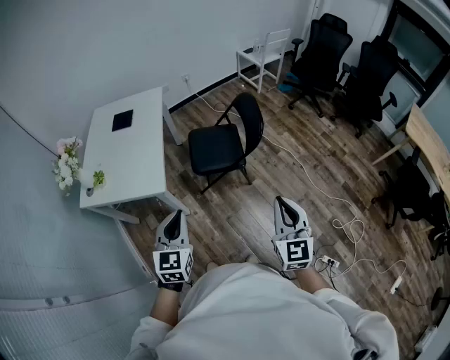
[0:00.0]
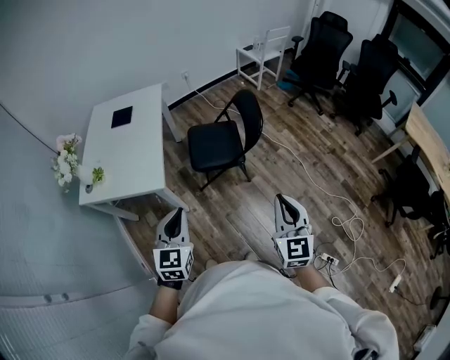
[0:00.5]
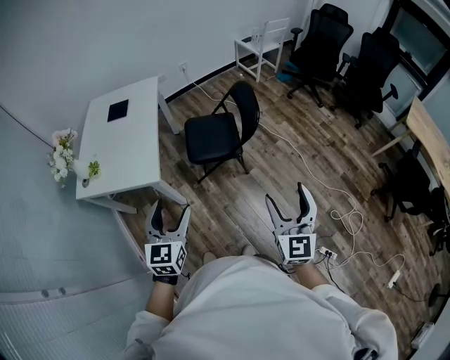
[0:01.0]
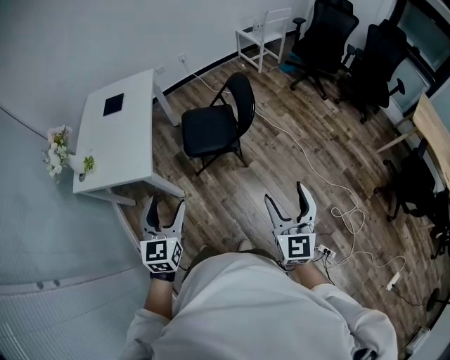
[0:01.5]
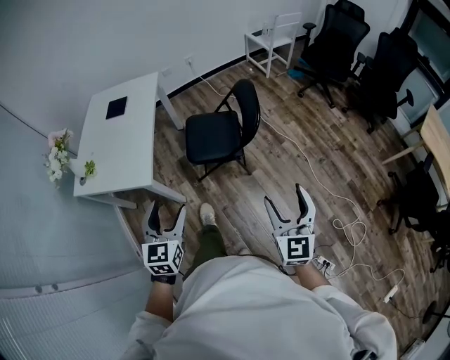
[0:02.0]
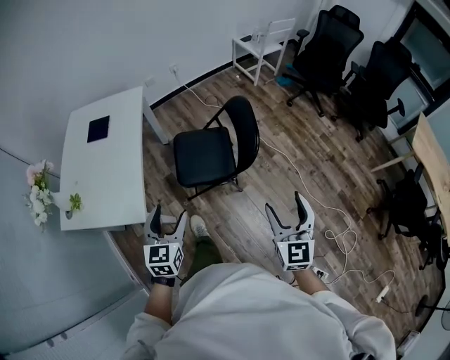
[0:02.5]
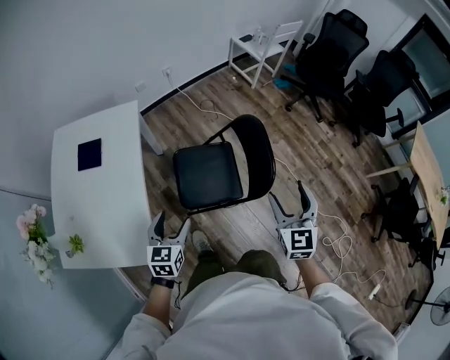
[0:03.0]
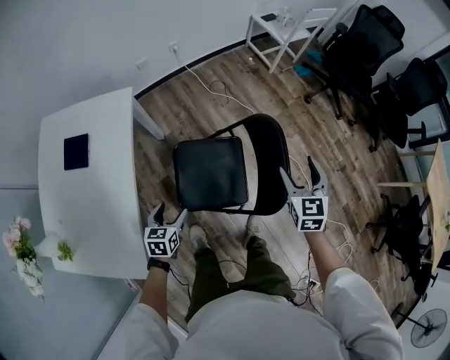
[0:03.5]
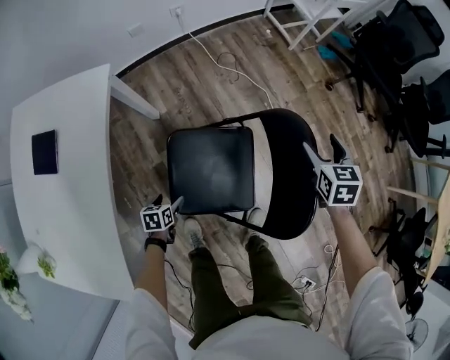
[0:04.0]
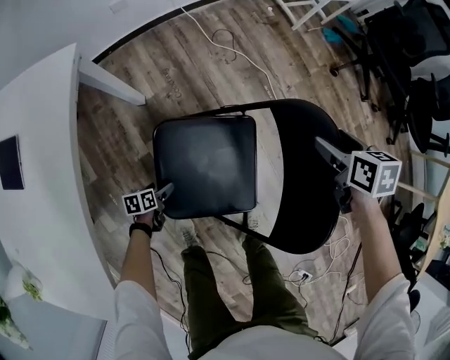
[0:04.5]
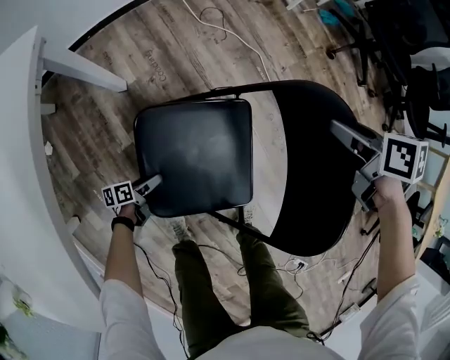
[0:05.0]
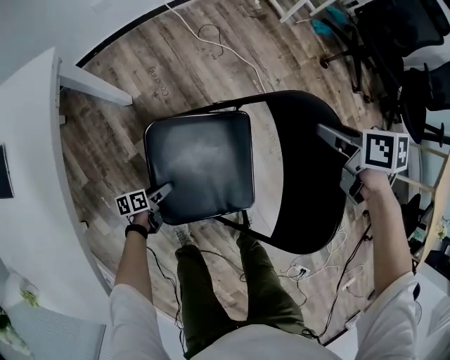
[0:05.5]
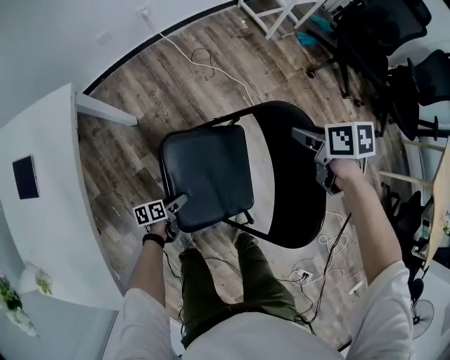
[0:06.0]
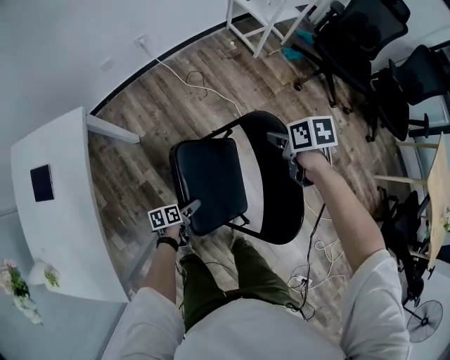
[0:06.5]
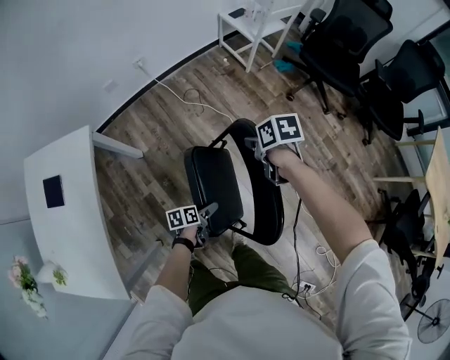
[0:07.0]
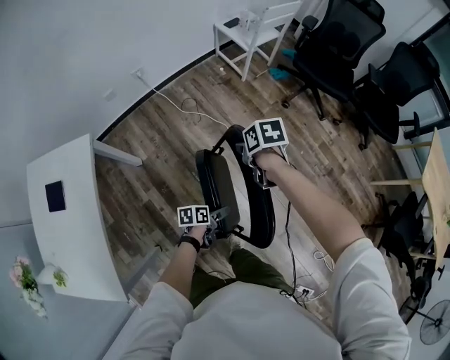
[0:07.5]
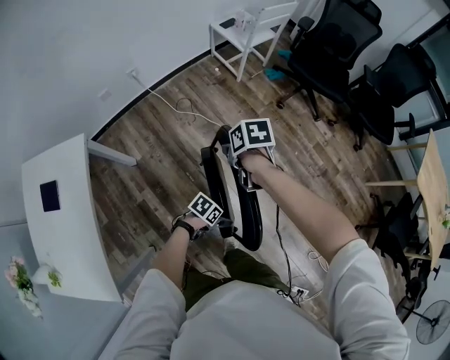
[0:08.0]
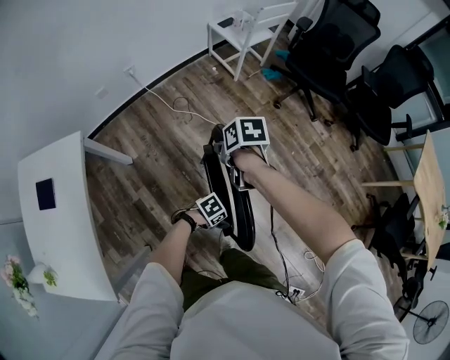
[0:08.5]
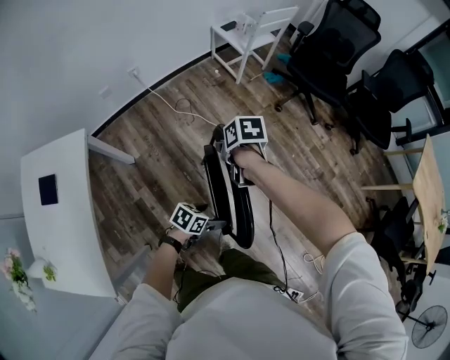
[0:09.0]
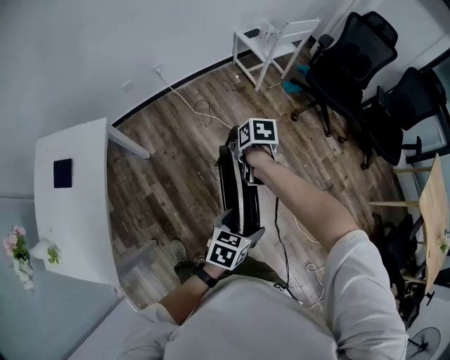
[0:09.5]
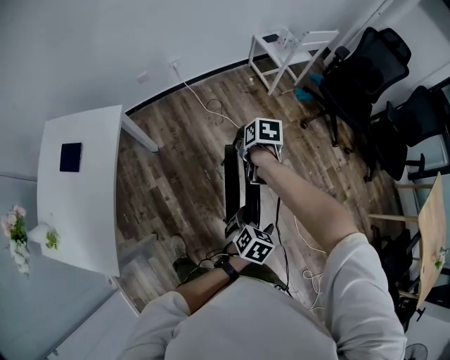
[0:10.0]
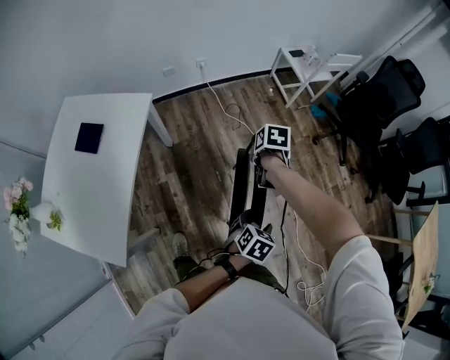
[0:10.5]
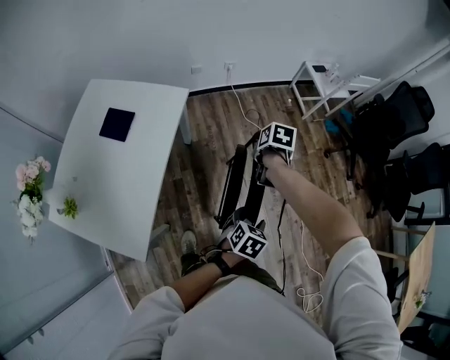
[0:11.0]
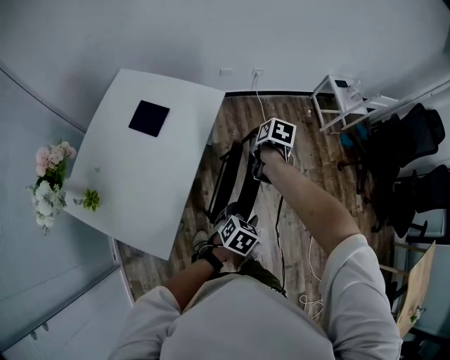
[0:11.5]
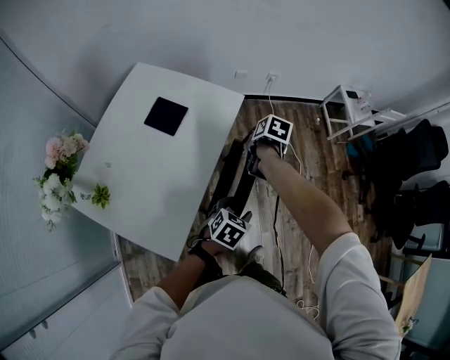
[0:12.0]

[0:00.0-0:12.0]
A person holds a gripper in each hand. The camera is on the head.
0:00.0 to 0:02.0: Both grippers travel together to the right and forward, some 10 cm. The left gripper opens up, while the right gripper opens its fingers.
0:02.0 to 0:04.0: The pair of grippers is taken forward, about 60 cm. The left gripper shifts some 60 cm downward, and angles its fingers downward, by approximately 40 degrees, while the right gripper moves downward, roughly 30 cm, and tilts its fingers roughly 40 degrees downward.
0:04.0 to 0:06.0: The right gripper travels downward and back again, some 10 cm each way, changes its angle by about 40 degrees, and closes, while the left gripper is displaced to the right by some 10 cm, goes downward and returns, roughly 20 cm each way, and rotates some 30 degrees.
0:06.0 to 0:08.0: The left gripper shifts by some 40 cm, and rotates roughly 60 degrees. The right gripper moves upward, approximately 10 cm.
0:08.0 to 0:10.0: The left gripper shifts about 20 cm upward, and rotates approximately 40 degrees, while the right gripper shifts by some 5 cm.
0:10.0 to 0:12.0: Both grippers are carried to the left, about 50 cm. The left gripper closes its fingers.

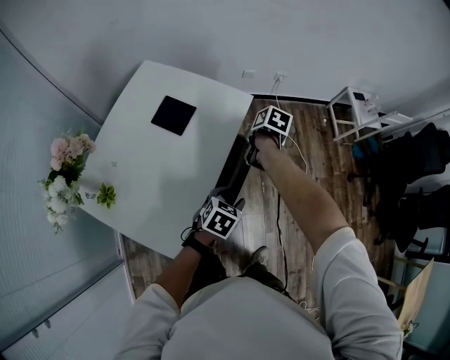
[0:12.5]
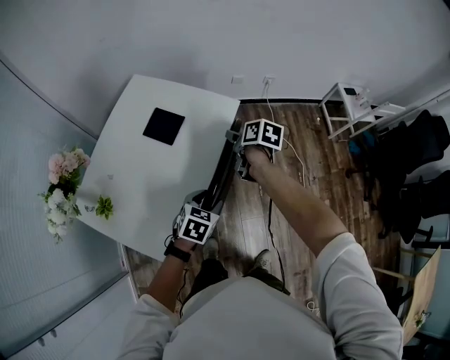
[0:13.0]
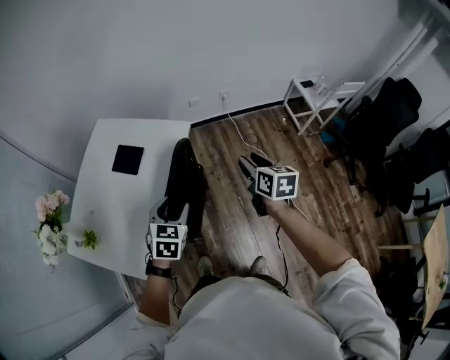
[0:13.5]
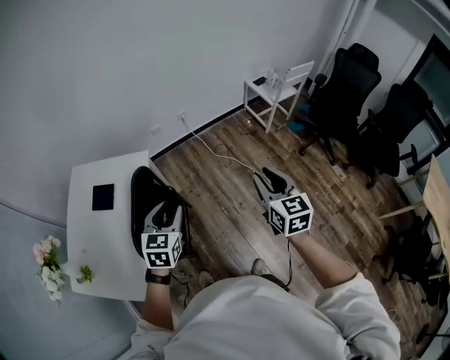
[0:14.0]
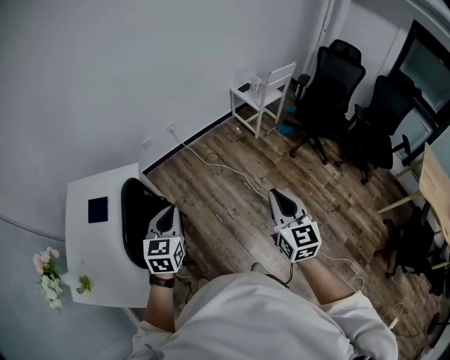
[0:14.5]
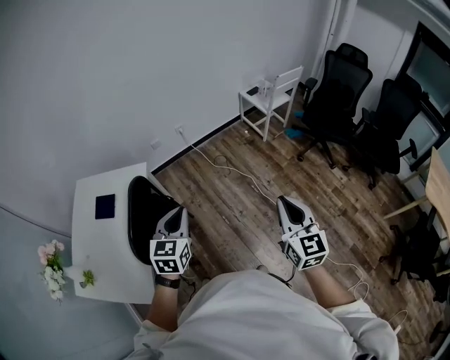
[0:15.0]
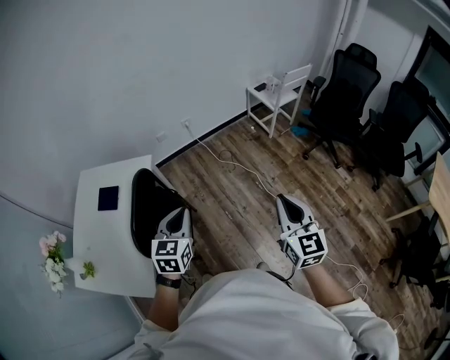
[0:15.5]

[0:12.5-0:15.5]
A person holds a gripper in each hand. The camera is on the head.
0:12.5 to 0:14.0: The left gripper moves upward and to the right, about 25 cm, and turns by some 30 degrees, while the right gripper moves to the right, upward and backward, about 50 cm, and tilts its fingers approximately 40 degrees upward.
0:14.0 to 0:15.5: The right gripper moves backward and to the right, approximately 15 cm, while the left gripper goes roughly 10 cm to the right, and closes its fingers.

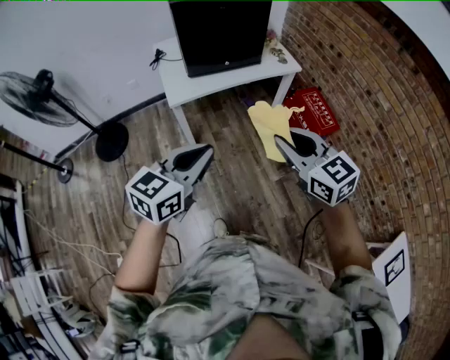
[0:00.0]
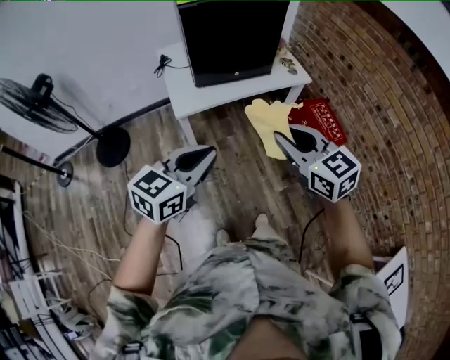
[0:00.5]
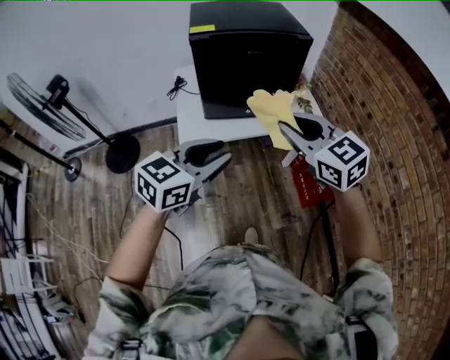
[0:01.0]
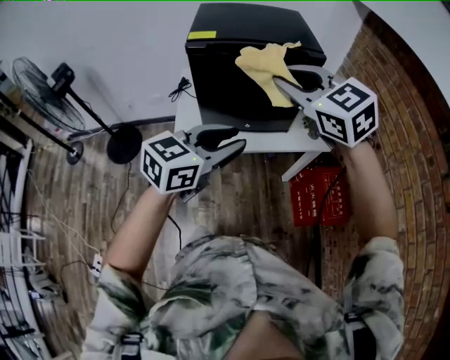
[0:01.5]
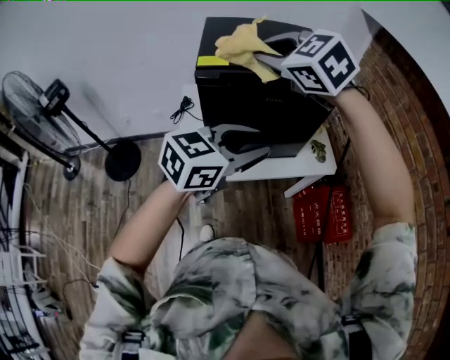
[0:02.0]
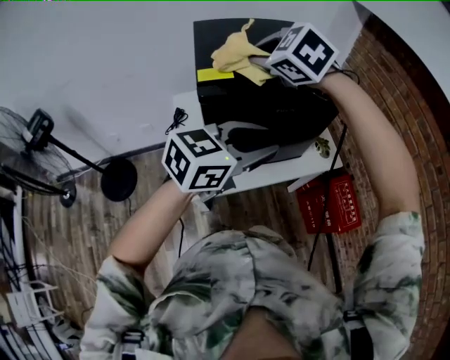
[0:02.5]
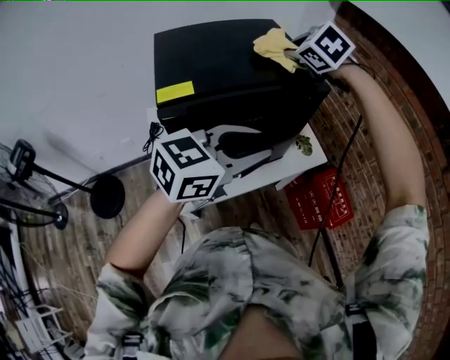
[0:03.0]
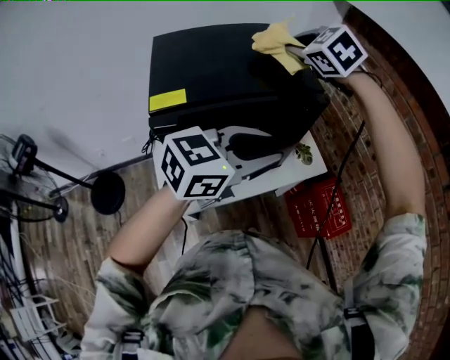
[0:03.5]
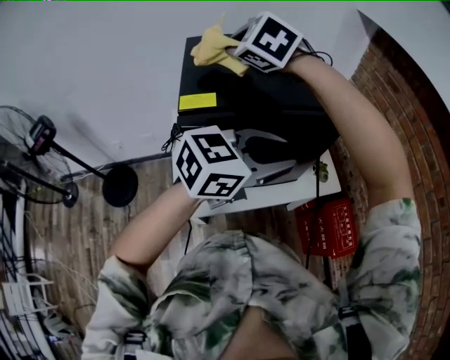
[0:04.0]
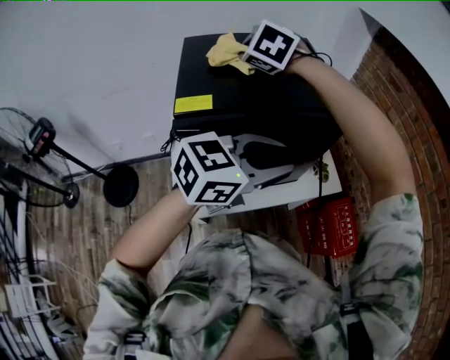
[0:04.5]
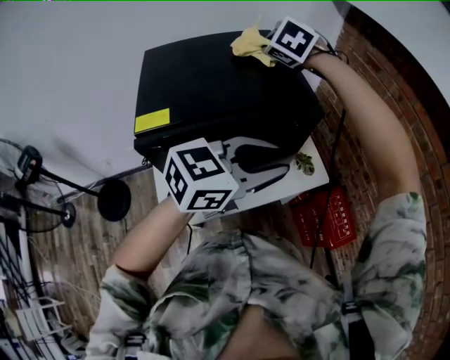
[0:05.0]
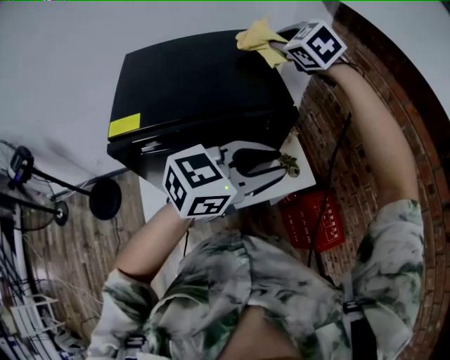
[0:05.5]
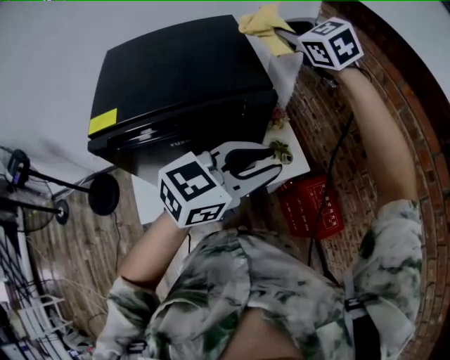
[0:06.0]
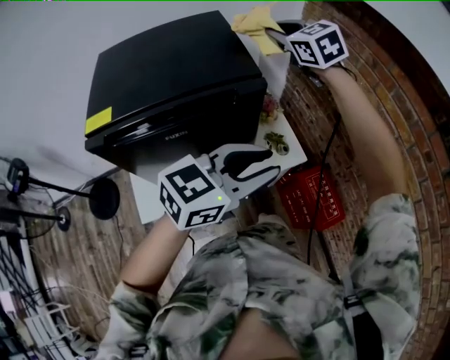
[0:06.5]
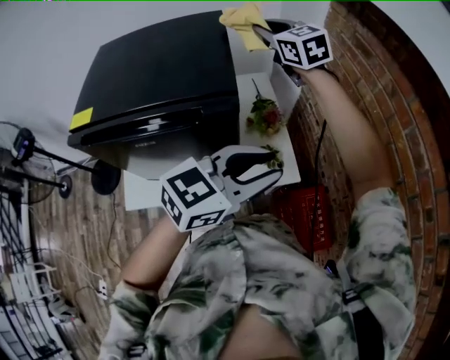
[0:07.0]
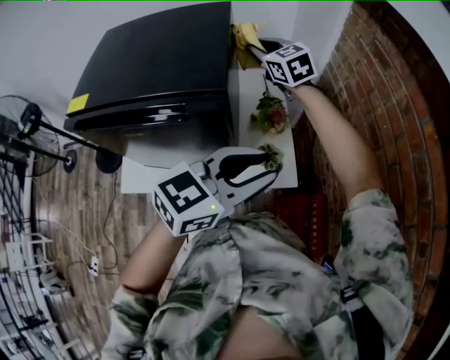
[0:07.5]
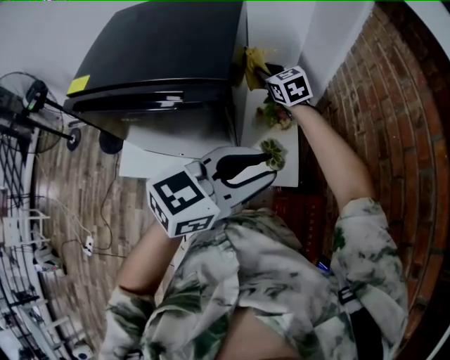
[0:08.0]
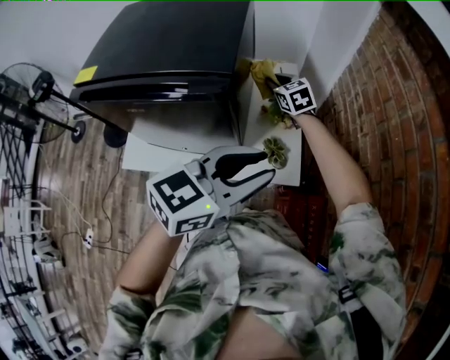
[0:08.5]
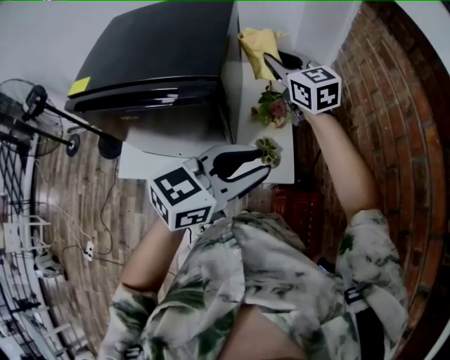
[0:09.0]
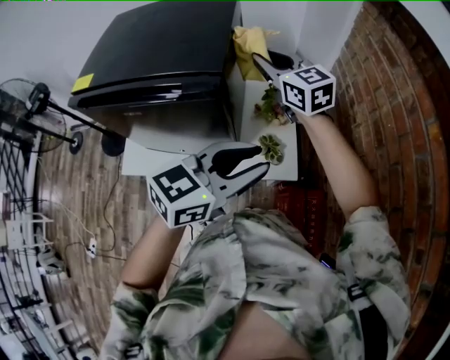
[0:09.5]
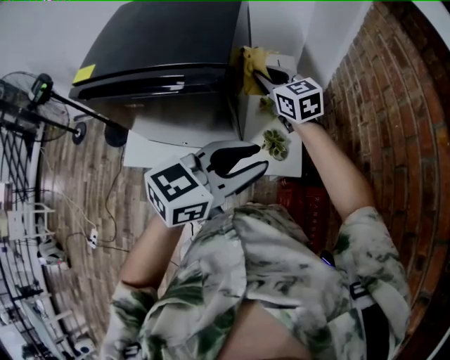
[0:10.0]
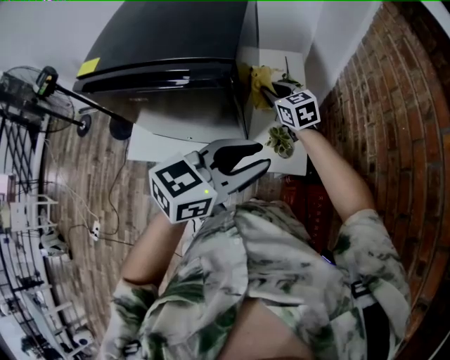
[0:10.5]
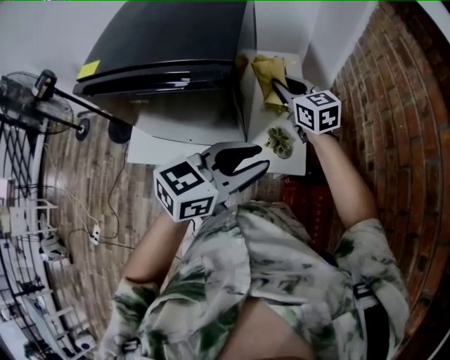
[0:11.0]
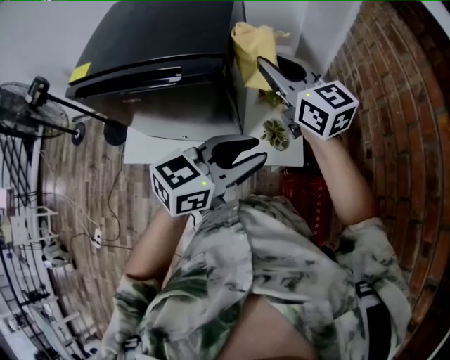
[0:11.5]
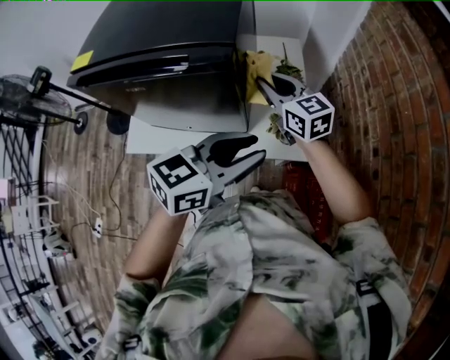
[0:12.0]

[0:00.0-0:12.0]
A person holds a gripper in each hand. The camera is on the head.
0:00.0 to 0:02.0: The pair of grippers is taken forward, about 50 cm. The left gripper opens up. The right gripper swivels about 40 degrees.
0:02.0 to 0:04.0: The right gripper is displaced forward and to the left by about 20 cm. The left gripper travels forward by some 10 cm.
0:04.0 to 0:06.0: The right gripper moves to the right and forward, about 35 cm, and rotates approximately 30 degrees. The left gripper heads to the right and forward, covering approximately 15 cm.
0:06.0 to 0:08.0: The left gripper travels to the right and forward by some 15 cm, and rotates approximately 20 degrees. Meanwhile the right gripper goes approximately 25 cm downward, and rotates some 20 degrees.
0:08.0 to 0:10.0: The right gripper swings up and down, about 20 cm each way, with 2 reversals.
0:10.0 to 0:12.0: The right gripper swings up and down, some 20 cm each way, with 2 reversals.
